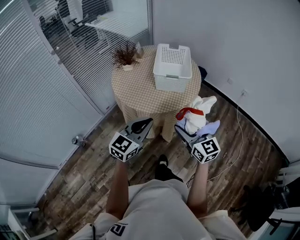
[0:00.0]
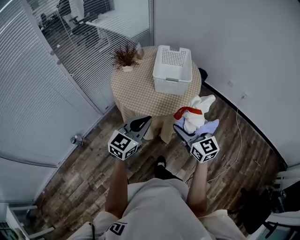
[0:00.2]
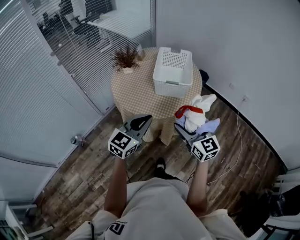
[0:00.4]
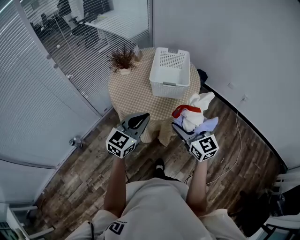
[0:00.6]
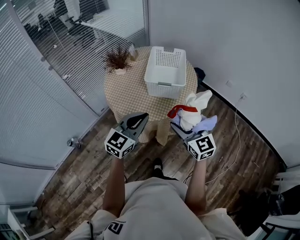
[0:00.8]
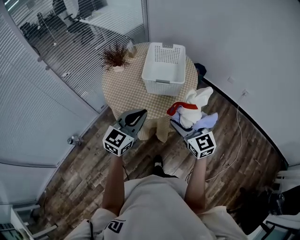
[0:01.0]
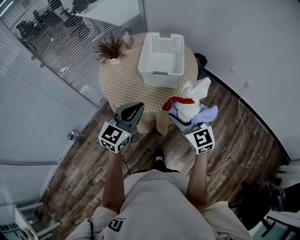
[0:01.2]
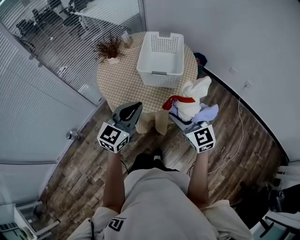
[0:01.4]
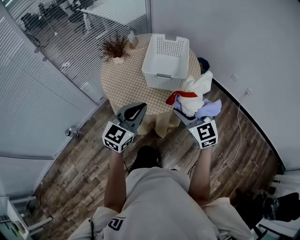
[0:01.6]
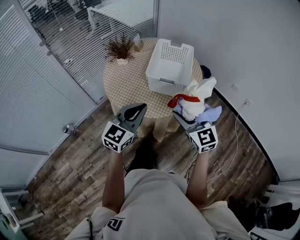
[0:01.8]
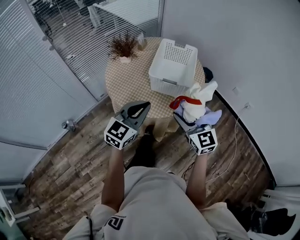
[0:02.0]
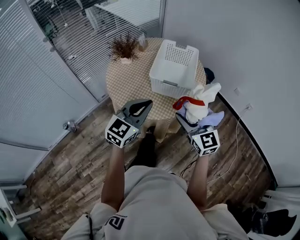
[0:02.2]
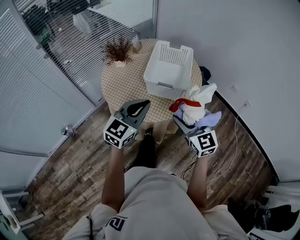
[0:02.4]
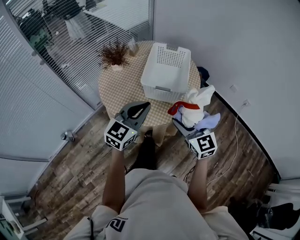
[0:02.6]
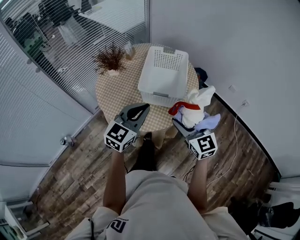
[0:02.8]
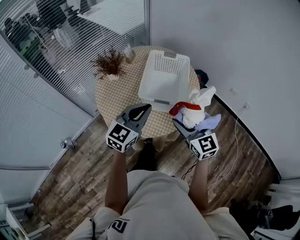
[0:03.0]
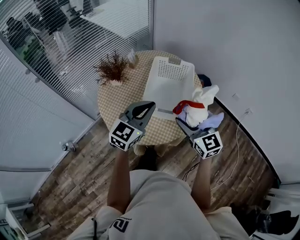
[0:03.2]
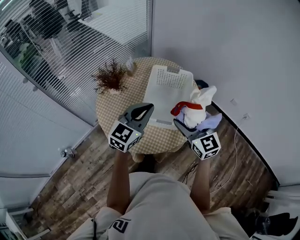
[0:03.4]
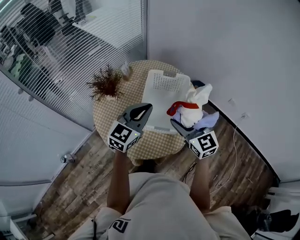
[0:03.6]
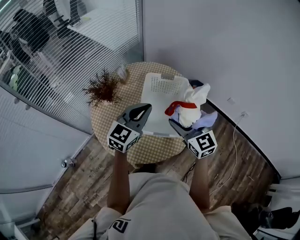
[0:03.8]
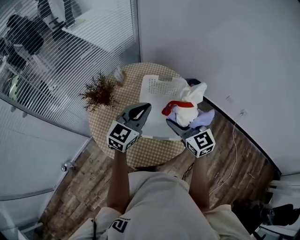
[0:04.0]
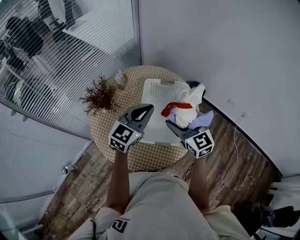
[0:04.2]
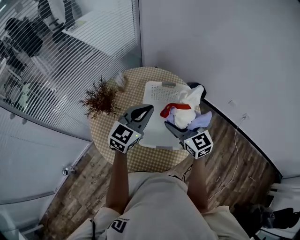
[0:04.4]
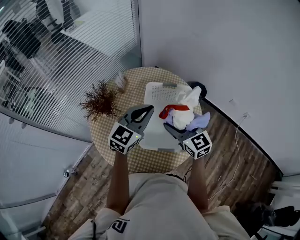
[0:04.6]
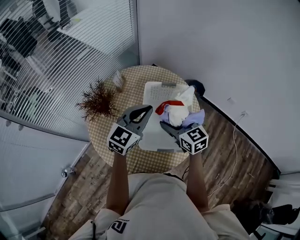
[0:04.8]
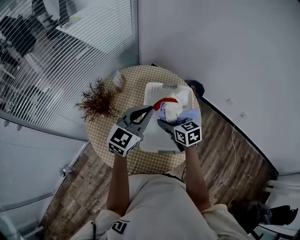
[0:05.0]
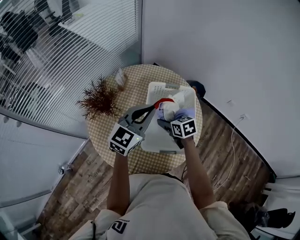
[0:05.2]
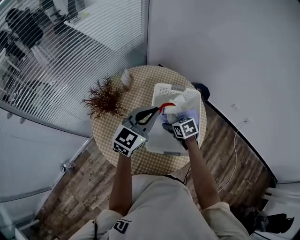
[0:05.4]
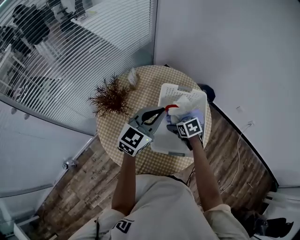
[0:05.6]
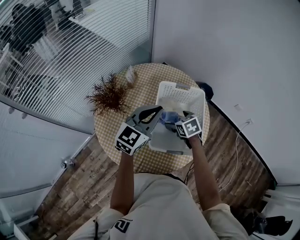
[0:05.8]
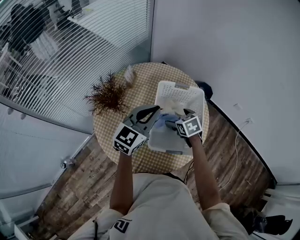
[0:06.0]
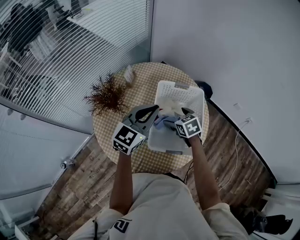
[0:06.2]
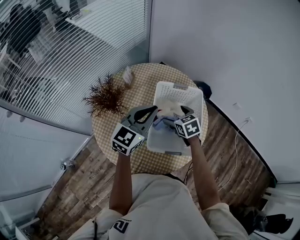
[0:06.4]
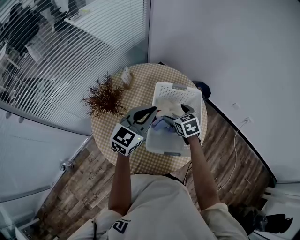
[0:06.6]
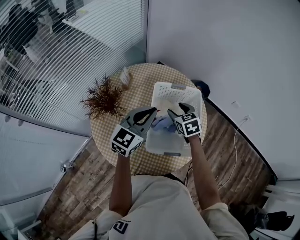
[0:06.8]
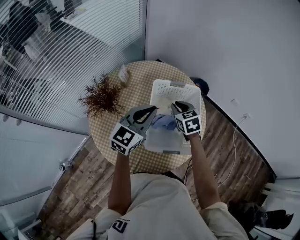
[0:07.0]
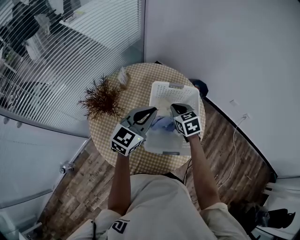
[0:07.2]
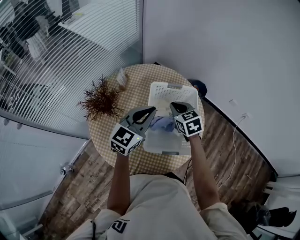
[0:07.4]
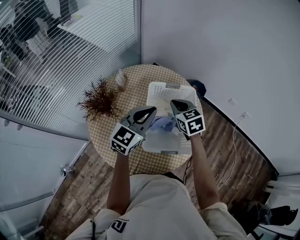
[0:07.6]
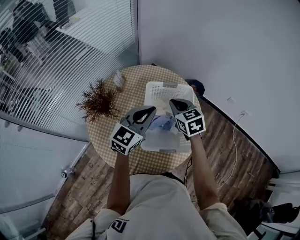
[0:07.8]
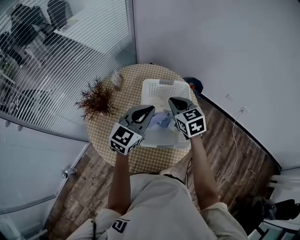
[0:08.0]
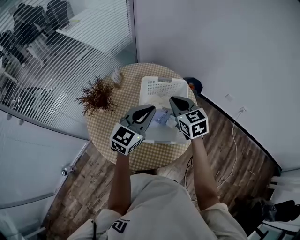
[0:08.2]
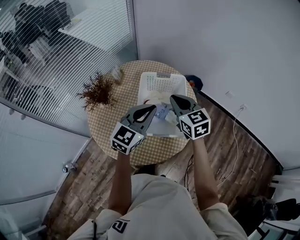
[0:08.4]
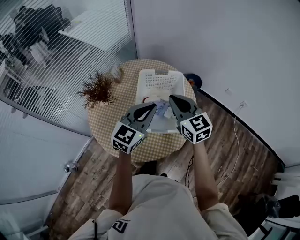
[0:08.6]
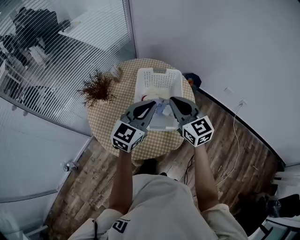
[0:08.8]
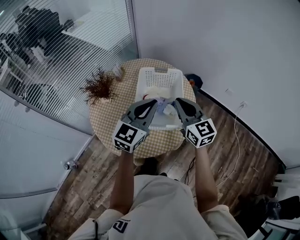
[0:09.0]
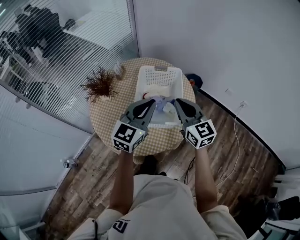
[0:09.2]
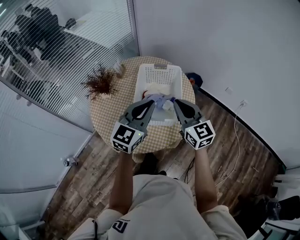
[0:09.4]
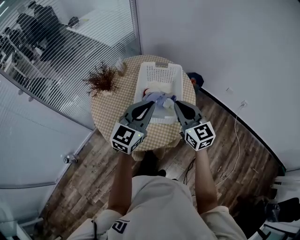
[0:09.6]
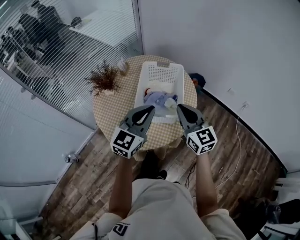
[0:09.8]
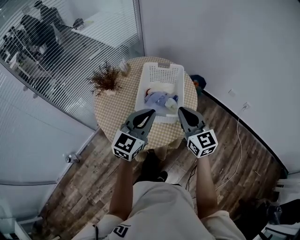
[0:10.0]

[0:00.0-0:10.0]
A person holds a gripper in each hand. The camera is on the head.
0.0 to 1.4 s: The grippers both shift forward by roughly 15 cm.
1.4 to 2.8 s: The grippers both shift forward by about 10 cm.
2.8 to 4.2 s: The two grippers go about 25 cm forward.
4.2 to 5.8 s: The left gripper moves roughly 5 cm; the right gripper moves downward, approximately 20 cm, and angles its fingers downward, by some 40 degrees.
5.8 to 7.2 s: The right gripper travels upward by some 5 cm, and closes.
7.2 to 8.6 s: The right gripper is displaced upward and backward by about 20 cm, and tips its fingers upward by roughly 30 degrees, while the left gripper shifts approximately 10 cm backward and to the right.
8.6 to 10.0 s: The left gripper shifts approximately 10 cm backward, while the right gripper moves backward and to the right, some 15 cm.

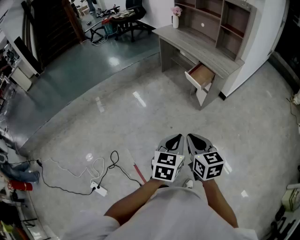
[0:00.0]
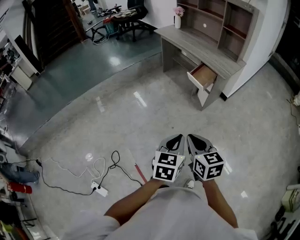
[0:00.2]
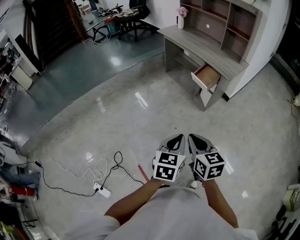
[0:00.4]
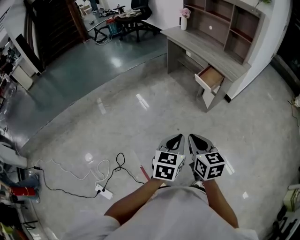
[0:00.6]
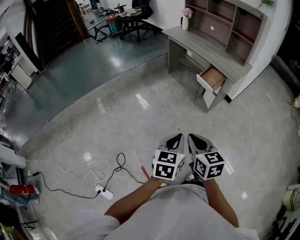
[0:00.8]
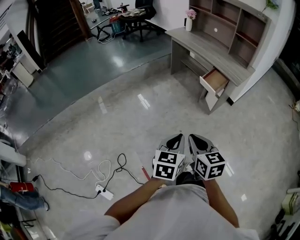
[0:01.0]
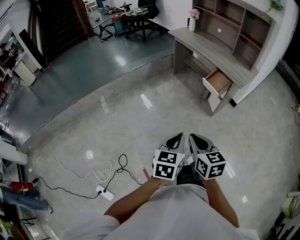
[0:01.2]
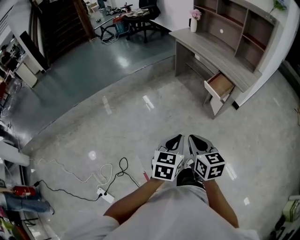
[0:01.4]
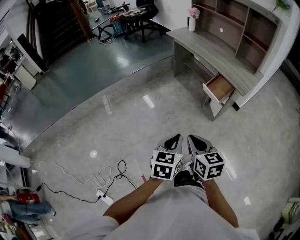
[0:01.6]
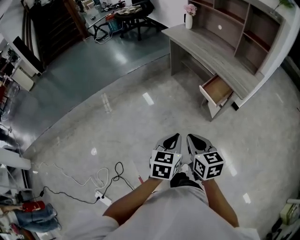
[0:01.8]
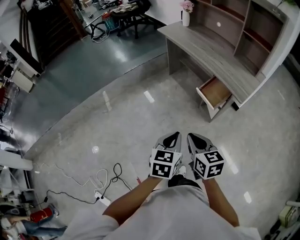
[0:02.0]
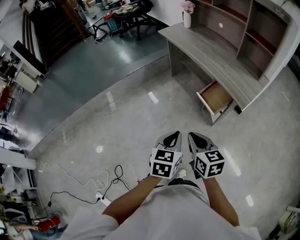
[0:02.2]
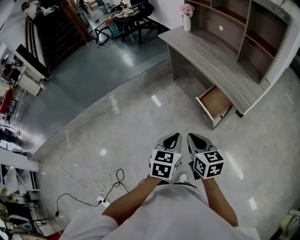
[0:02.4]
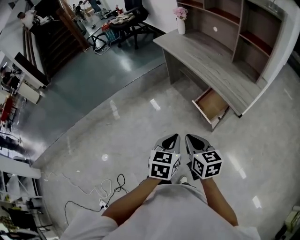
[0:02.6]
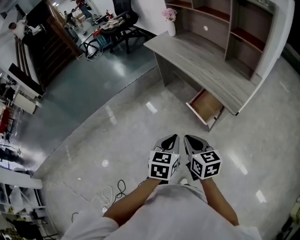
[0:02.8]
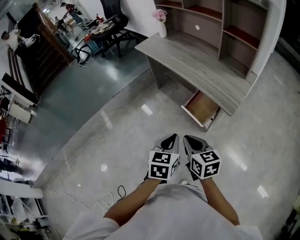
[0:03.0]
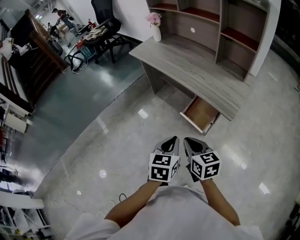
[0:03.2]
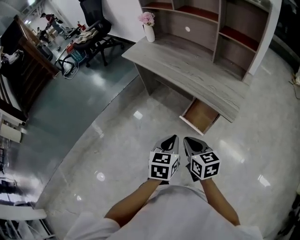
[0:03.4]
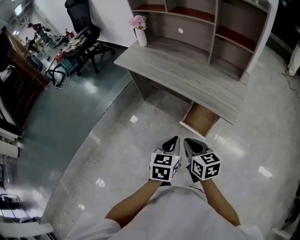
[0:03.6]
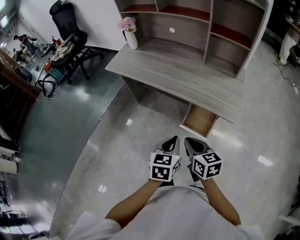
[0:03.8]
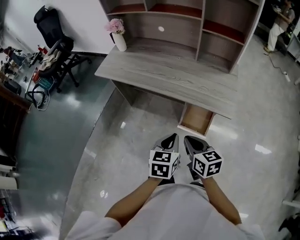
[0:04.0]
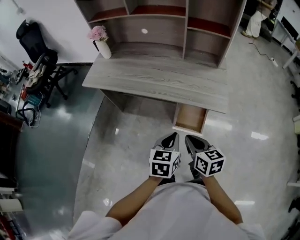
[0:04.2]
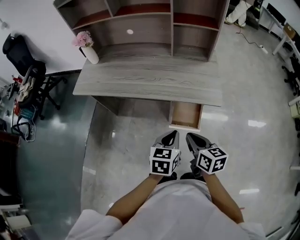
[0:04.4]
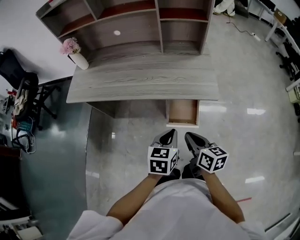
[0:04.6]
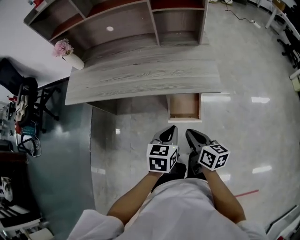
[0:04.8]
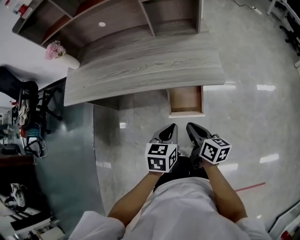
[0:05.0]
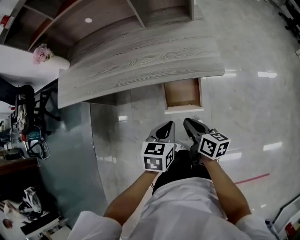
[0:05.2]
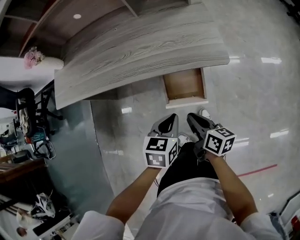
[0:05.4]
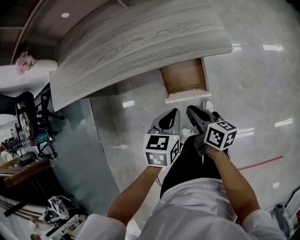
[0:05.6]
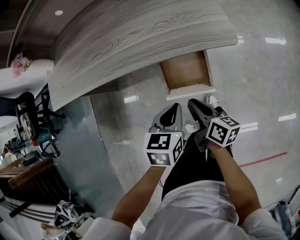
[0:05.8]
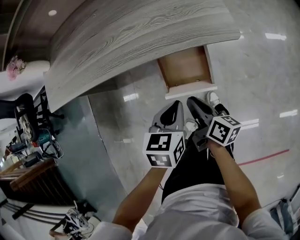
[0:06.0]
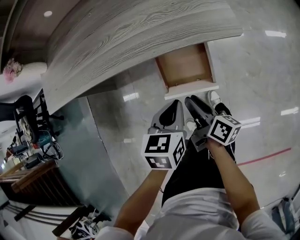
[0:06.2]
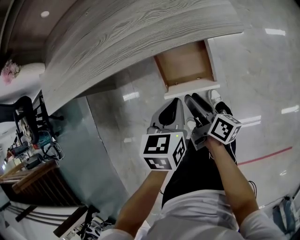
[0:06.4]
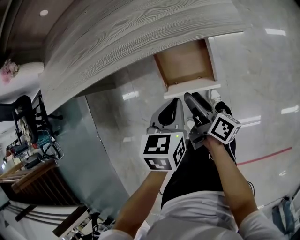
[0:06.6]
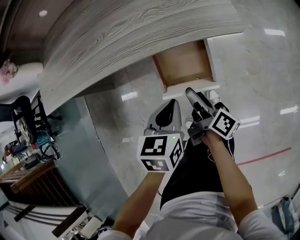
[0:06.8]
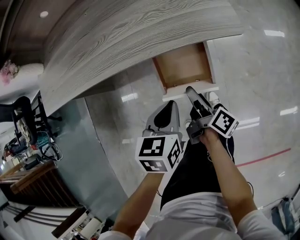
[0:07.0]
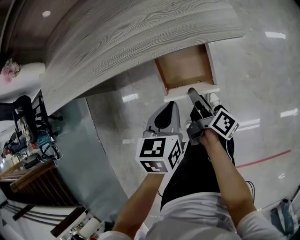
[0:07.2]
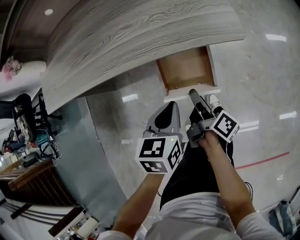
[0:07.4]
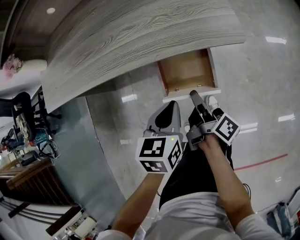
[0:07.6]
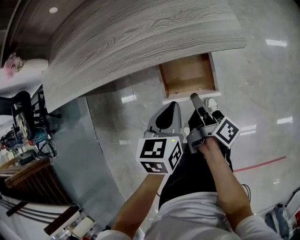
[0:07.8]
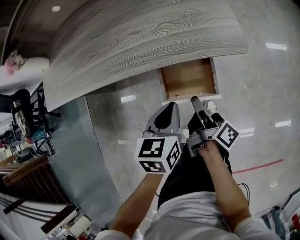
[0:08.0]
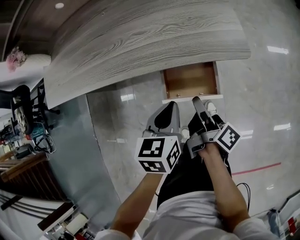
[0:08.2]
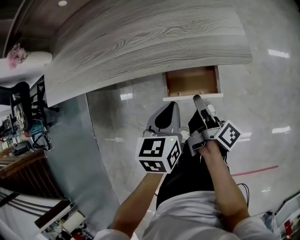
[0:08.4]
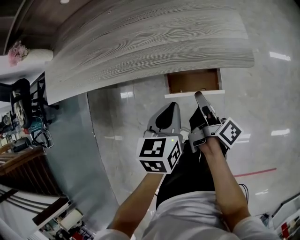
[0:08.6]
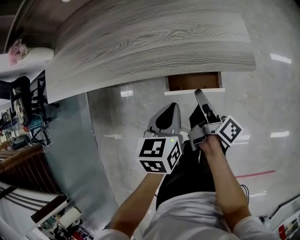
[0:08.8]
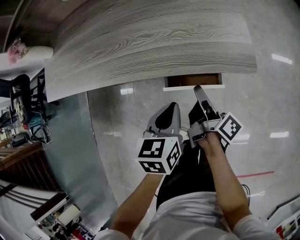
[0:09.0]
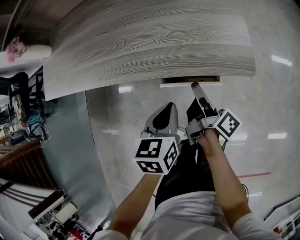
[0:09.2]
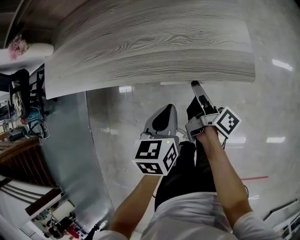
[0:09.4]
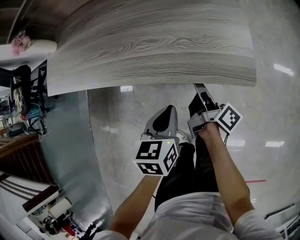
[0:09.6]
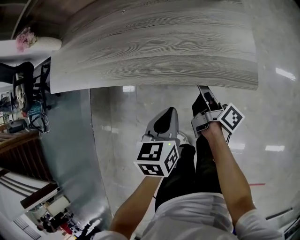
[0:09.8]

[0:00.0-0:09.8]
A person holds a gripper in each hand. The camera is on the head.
0.0 to 1.4 s: The two grippers go approximately 15 cm to the left and forward.
1.4 to 2.8 s: The two grippers go approximately 35 cm forward and to the right.
2.8 to 4.2 s: The left gripper changes place by some 25 cm, and rotates approximately 40 degrees; the right gripper moves approximately 20 cm, and swivels some 40 degrees.
4.2 to 5.6 s: Both grippers move downward, approximately 20 cm. The left gripper rotates about 20 degrees, while the right gripper changes its angle by approximately 40 degrees.
5.6 to 7.0 s: The right gripper moves downward, roughly 5 cm, turns by about 30 degrees, and opens.
7.0 to 8.4 s: The left gripper shifts by about 5 cm, while the right gripper heads upward, covering about 5 cm.
8.4 to 9.8 s: The right gripper moves forward, some 10 cm.

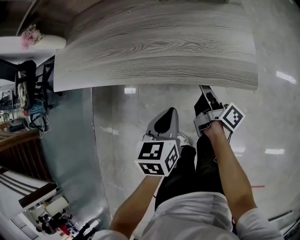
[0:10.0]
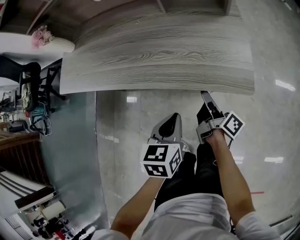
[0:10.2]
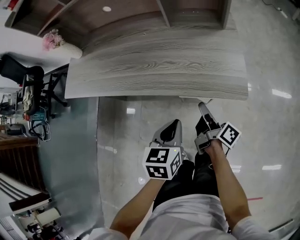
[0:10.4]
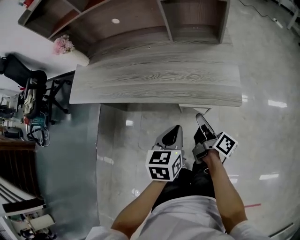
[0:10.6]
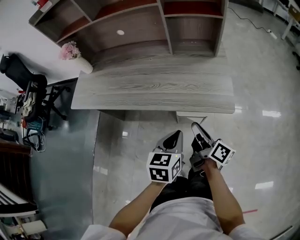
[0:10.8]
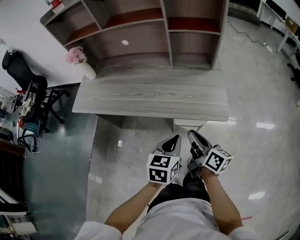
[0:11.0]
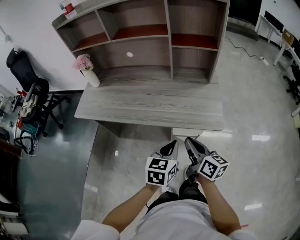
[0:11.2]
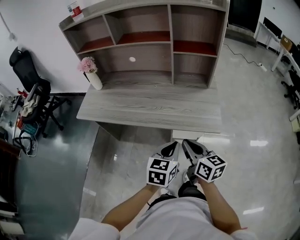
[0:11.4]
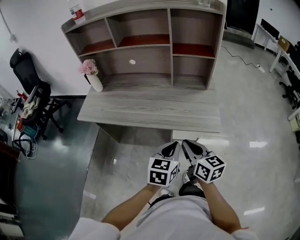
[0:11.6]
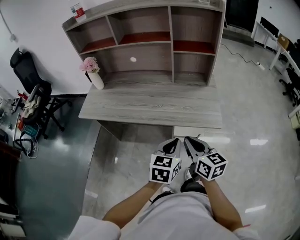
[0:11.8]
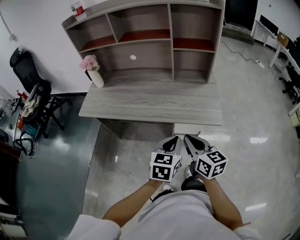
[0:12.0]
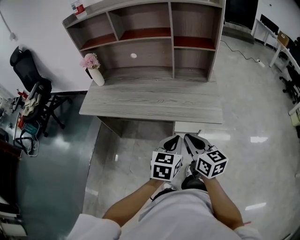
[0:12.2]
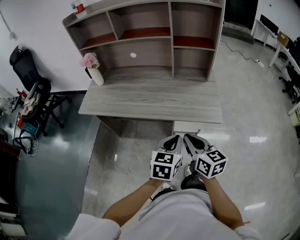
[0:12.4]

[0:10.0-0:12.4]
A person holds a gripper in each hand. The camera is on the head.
10.0 to 11.2 s: The right gripper travels upward and backward by some 25 cm, twists approximately 50 degrees counterclockwise, seen from behind, and closes its fingers. Meanwhile the left gripper travels upward by roughly 15 cm.
11.2 to 12.4 s: The right gripper heads backward, covering roughly 5 cm, and swivels some 20 degrees. Meanwhile the left gripper shifts by roughly 5 cm.

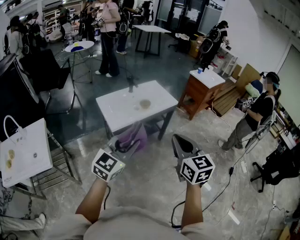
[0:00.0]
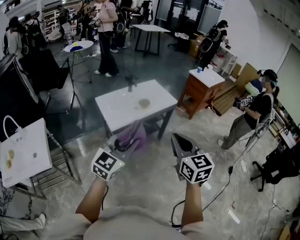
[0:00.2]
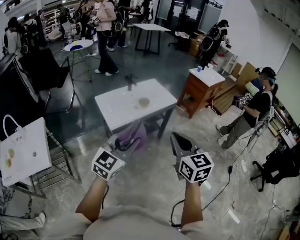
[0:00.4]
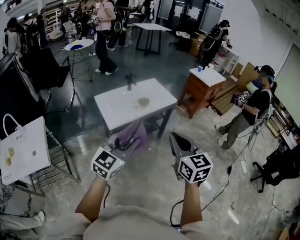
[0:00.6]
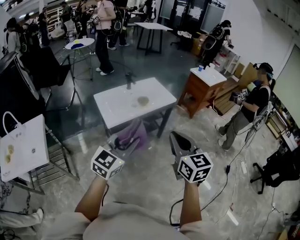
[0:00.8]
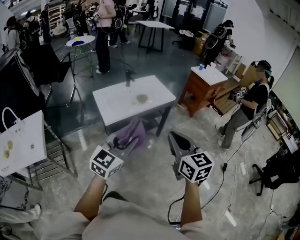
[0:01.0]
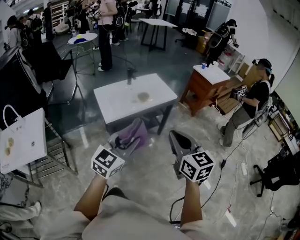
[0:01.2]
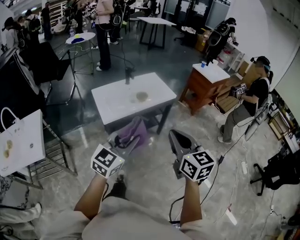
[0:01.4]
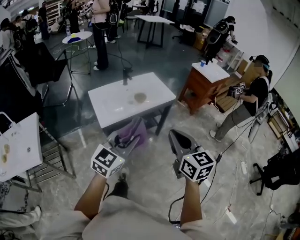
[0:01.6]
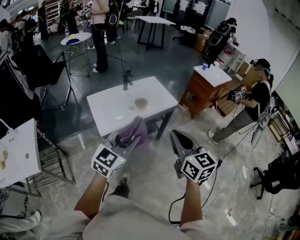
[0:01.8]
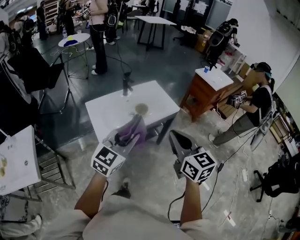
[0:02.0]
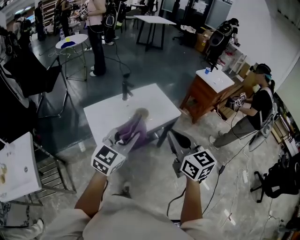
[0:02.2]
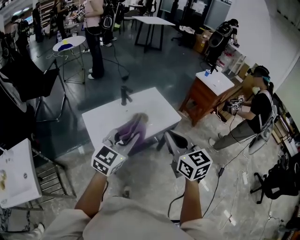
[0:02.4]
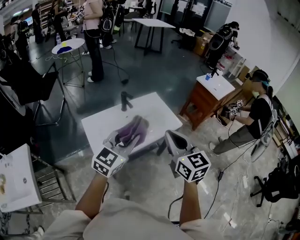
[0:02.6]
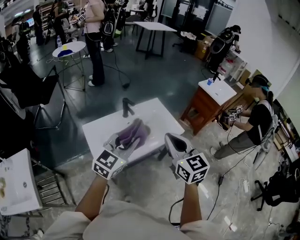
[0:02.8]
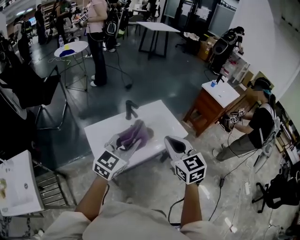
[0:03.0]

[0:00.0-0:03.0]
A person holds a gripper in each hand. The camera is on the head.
0.0 to 1.6 s: The grippers both shift forward and to the right by about 10 cm.
1.6 to 3.0 s: The two grippers go about 35 cm forward.
